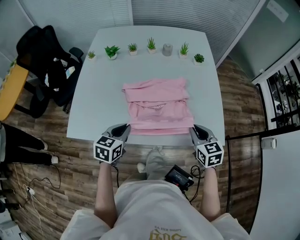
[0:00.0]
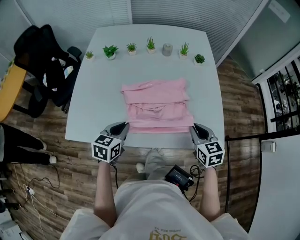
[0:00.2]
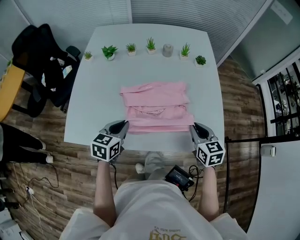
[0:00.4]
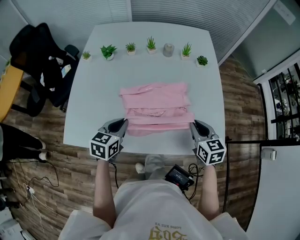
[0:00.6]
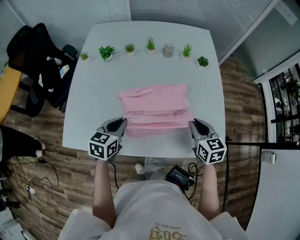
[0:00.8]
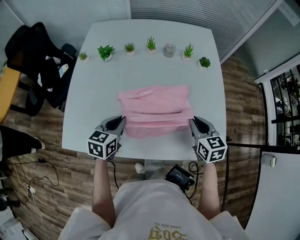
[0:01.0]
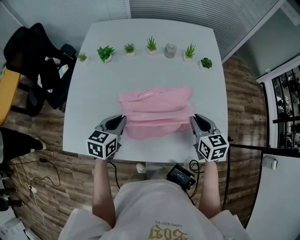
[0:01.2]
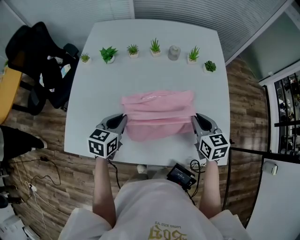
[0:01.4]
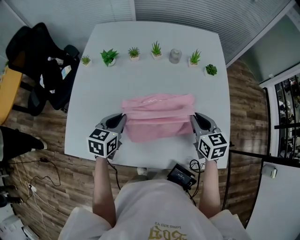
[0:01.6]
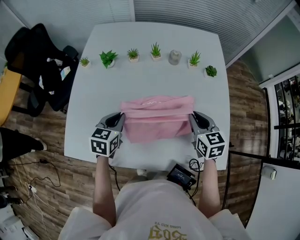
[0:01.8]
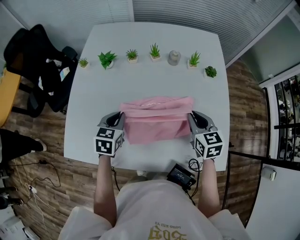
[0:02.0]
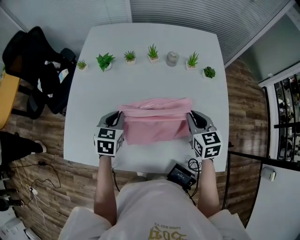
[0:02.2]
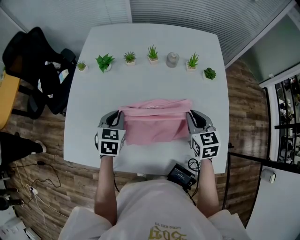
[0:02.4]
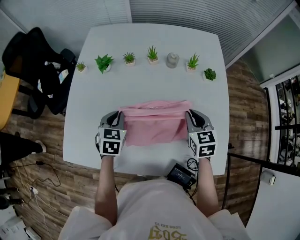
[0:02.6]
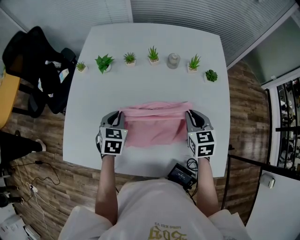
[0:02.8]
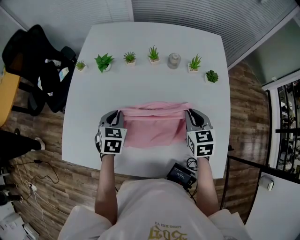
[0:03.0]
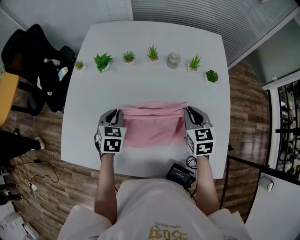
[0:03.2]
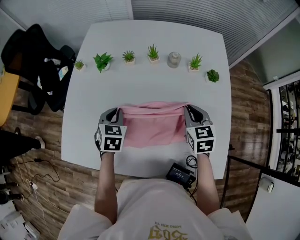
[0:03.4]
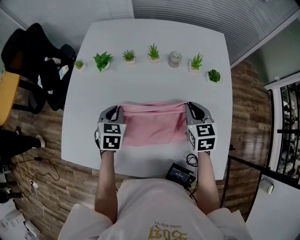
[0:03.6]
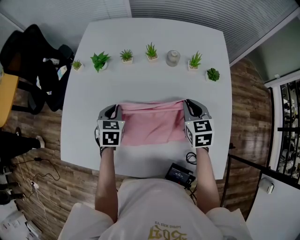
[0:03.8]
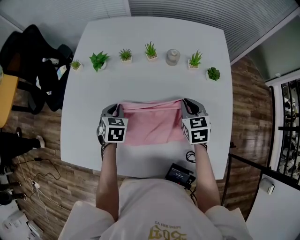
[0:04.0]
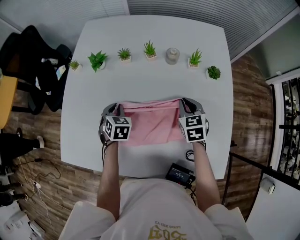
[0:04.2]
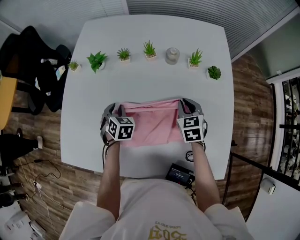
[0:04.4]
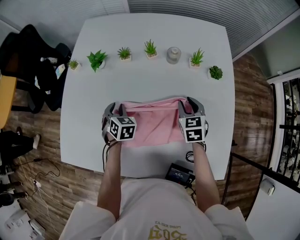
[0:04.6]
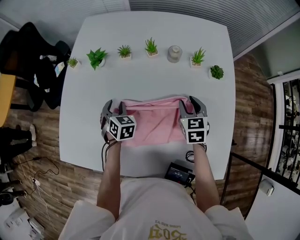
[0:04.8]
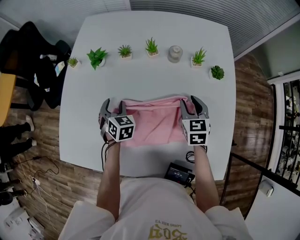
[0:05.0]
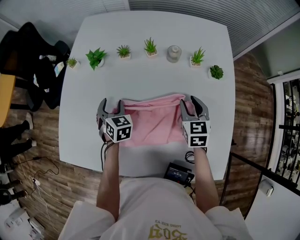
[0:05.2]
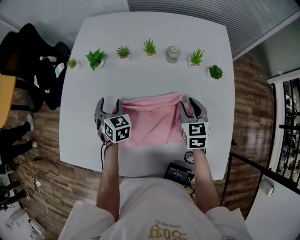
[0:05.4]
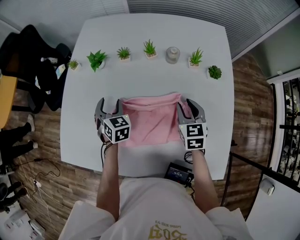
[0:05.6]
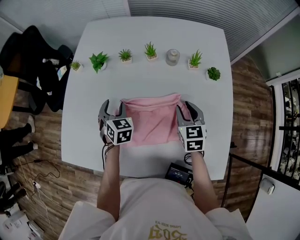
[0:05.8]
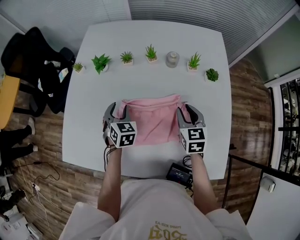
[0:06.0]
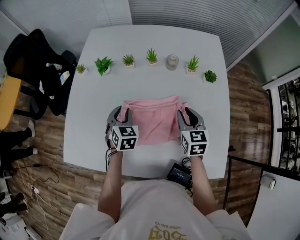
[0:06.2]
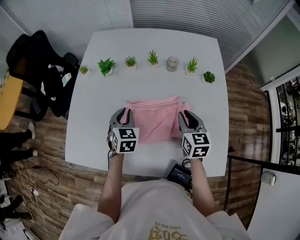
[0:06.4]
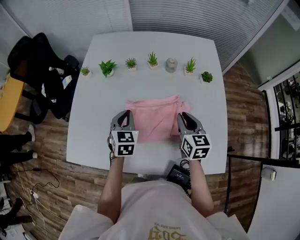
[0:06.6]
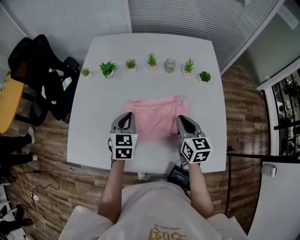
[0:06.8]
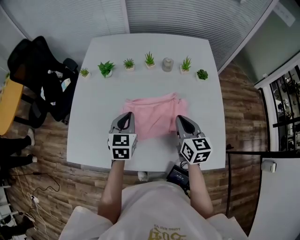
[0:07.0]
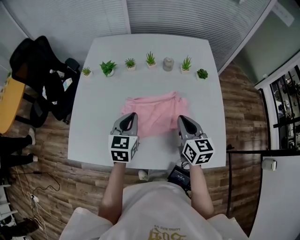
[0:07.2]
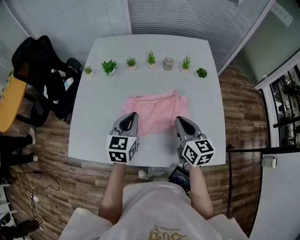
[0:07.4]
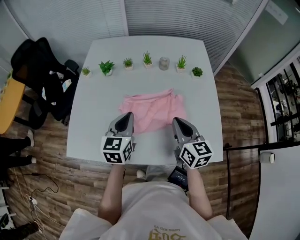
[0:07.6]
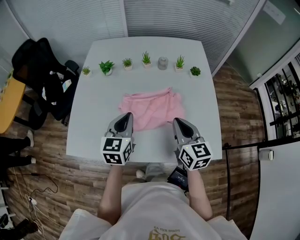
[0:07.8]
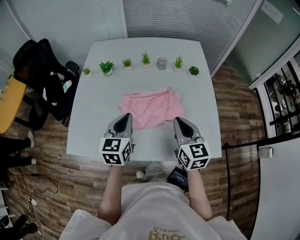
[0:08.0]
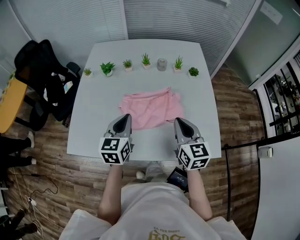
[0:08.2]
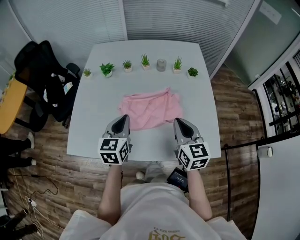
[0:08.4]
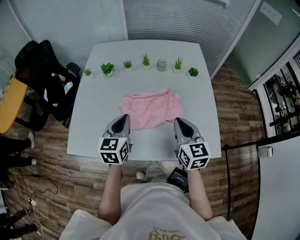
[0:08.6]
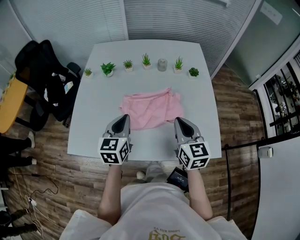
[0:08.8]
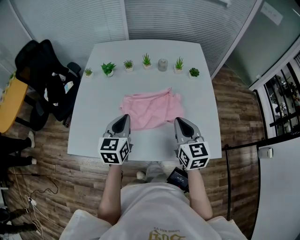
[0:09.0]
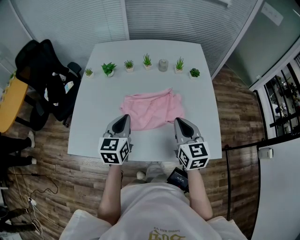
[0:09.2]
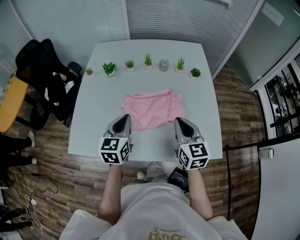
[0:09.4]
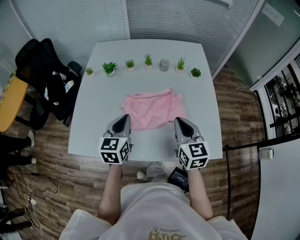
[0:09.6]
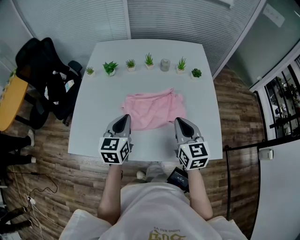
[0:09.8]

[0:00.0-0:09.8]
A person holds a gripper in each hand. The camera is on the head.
0:00.0 to 0:01.4: The grippers both shift forward by roughly 15 cm.
0:01.4 to 0:02.8: Both grippers move forward, roughly 10 cm. The left gripper rotates roughly 20 degrees.
0:02.8 to 0:04.2: The right gripper heads forward and downward, covering approximately 10 cm. The left gripper shifts some 10 cm downward and forward.
0:04.2 to 0:05.6: The left gripper opens up.
0:05.6 to 0:07.0: The left gripper is displaced backward, upward and to the right by roughly 20 cm, turns by roughly 30 degrees, and closes. Meanwhile the right gripper moves backward, upward and to the left, roughly 15 cm, changes its angle by approximately 20 degrees, and closes up.
0:07.0 to 0:08.4: The grippers both shift backward and upward by roughly 10 cm.
0:08.4 to 0:09.8: The grippers make only small movements.

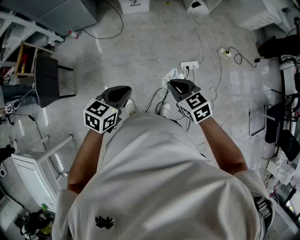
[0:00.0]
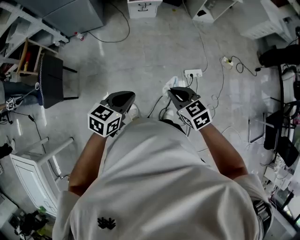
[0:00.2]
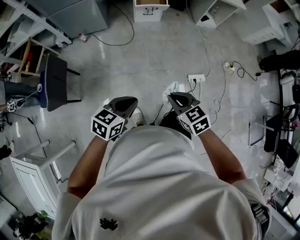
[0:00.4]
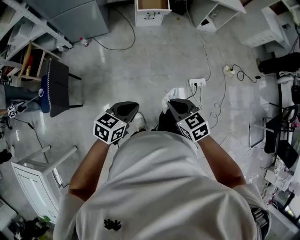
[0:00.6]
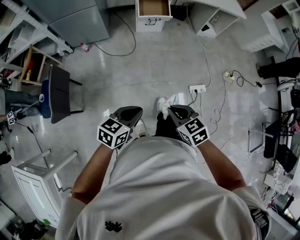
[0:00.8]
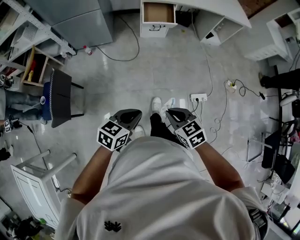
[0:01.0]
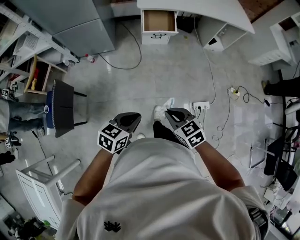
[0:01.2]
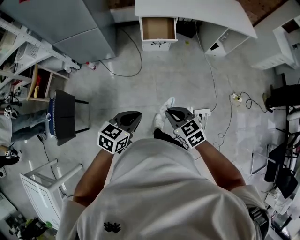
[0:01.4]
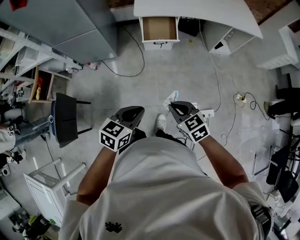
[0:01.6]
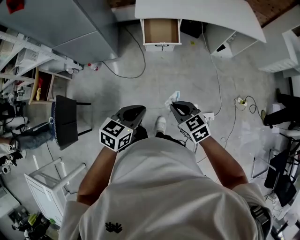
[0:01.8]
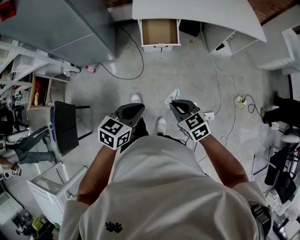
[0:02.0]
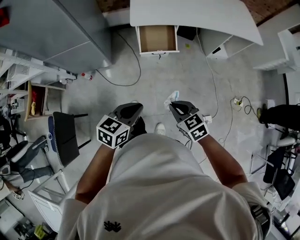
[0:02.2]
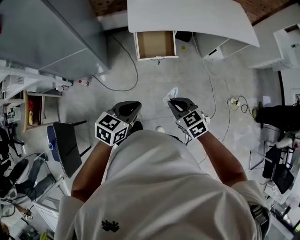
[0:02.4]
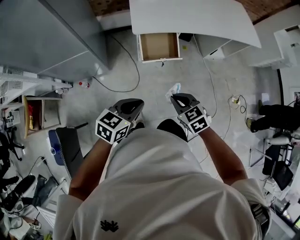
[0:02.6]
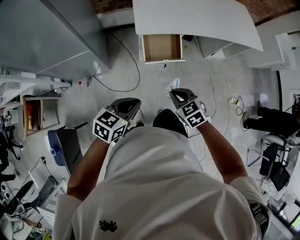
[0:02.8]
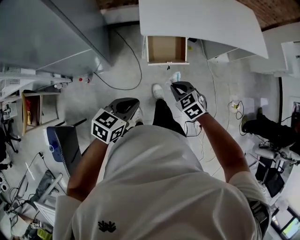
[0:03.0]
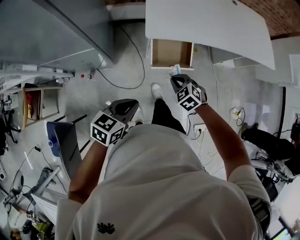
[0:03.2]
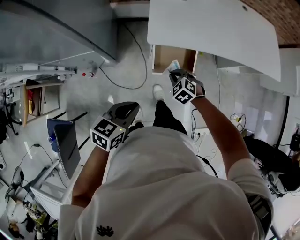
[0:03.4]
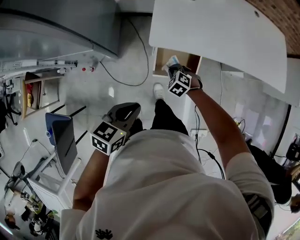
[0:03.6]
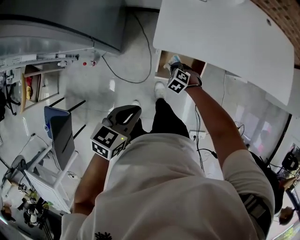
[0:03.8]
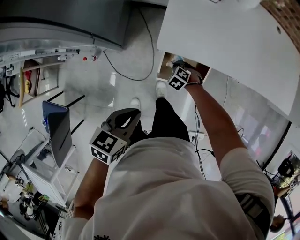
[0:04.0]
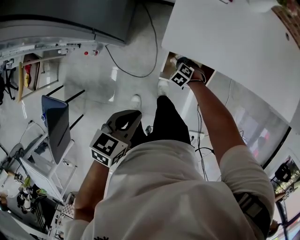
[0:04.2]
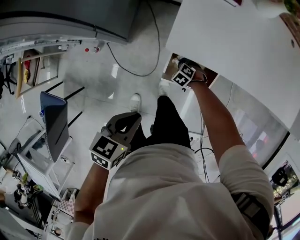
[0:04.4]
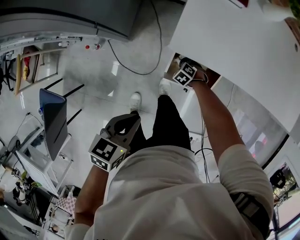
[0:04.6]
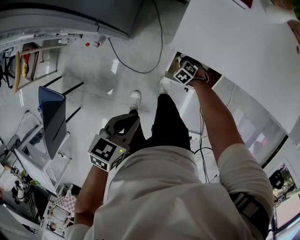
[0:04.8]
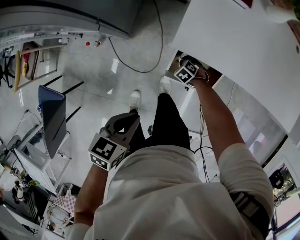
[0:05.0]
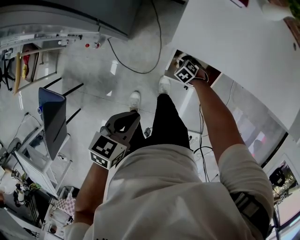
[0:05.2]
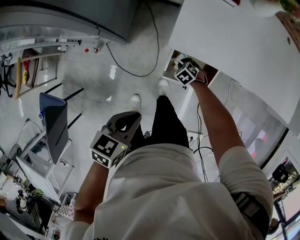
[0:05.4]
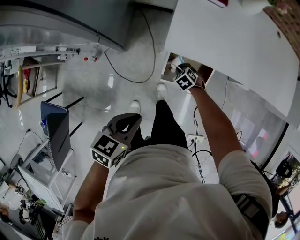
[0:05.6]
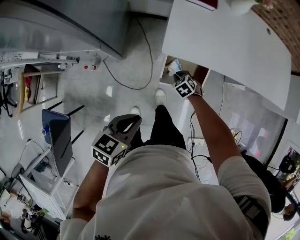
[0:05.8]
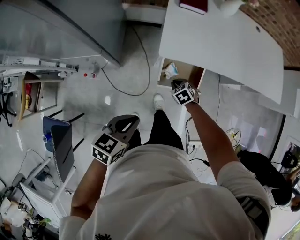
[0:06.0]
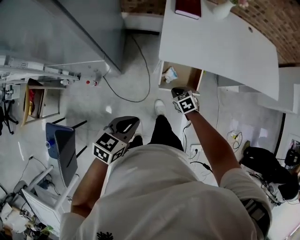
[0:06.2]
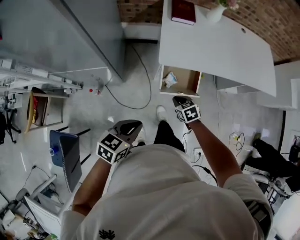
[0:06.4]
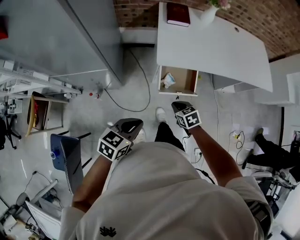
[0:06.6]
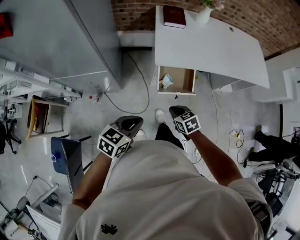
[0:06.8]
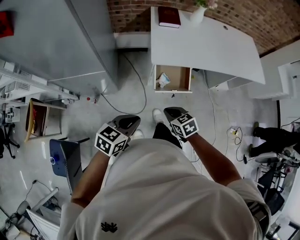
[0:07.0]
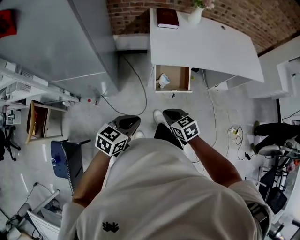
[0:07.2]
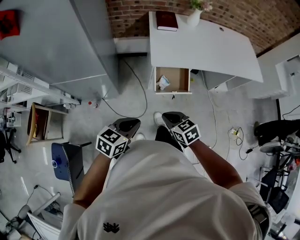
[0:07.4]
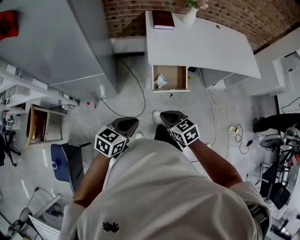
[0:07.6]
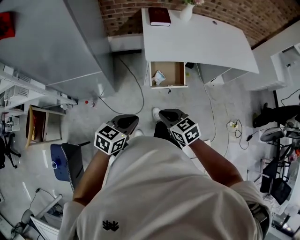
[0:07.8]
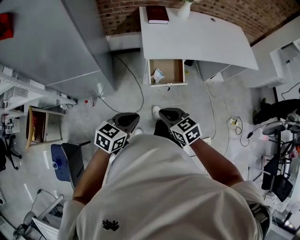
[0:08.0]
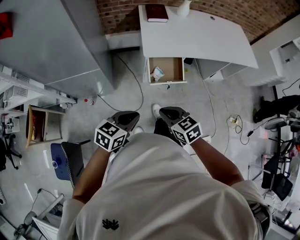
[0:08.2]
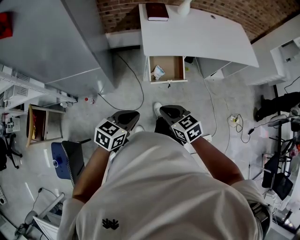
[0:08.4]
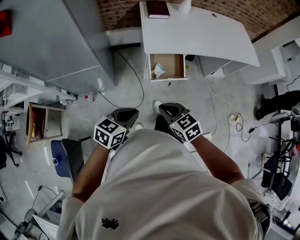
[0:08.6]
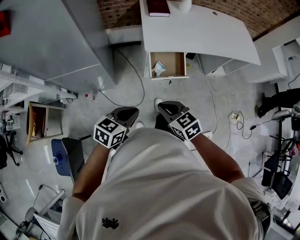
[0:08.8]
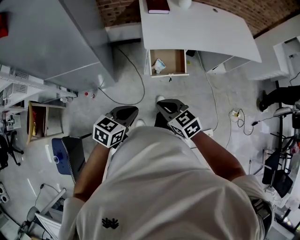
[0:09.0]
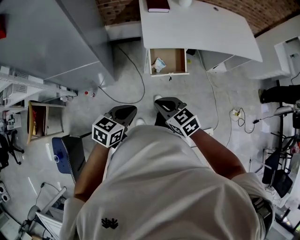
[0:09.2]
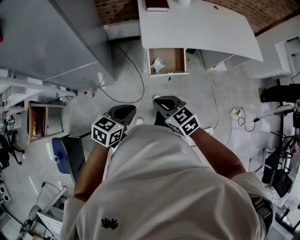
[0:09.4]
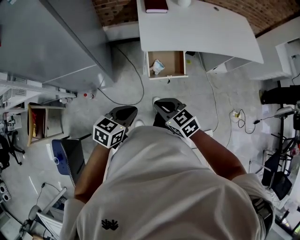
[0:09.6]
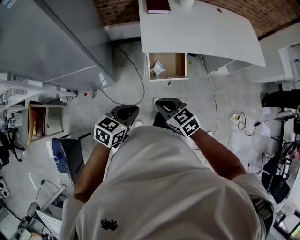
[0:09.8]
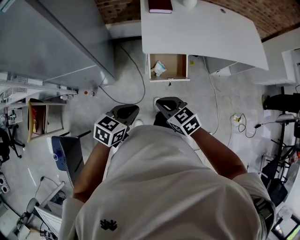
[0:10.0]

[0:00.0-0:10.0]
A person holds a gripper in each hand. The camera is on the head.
0:00.0 to 0:01.4: Both grippers move forward and to the left, about 30 cm.
0:01.4 to 0:02.8: The two grippers travel together, forward, roughly 40 cm.
0:02.8 to 0:04.2: The left gripper ends up roughly 30 cm from where it was, and changes its angle by roughly 30 degrees; the right gripper changes place by some 60 cm, and changes its angle by some 50 degrees.
0:04.2 to 0:05.8: The right gripper goes some 10 cm upward, and turns by approximately 20 degrees, while the left gripper shifts by roughly 10 cm.
0:05.8 to 0:07.2: The right gripper heads backward and upward, covering some 40 cm, and changes its angle by some 30 degrees, while the left gripper shifts about 15 cm backward and upward.
0:07.2 to 0:08.6: The right gripper moves backward and upward, about 10 cm.
0:08.6 to 0:10.0: The left gripper shifts approximately 10 cm forward and to the right, while the right gripper shifts approximately 10 cm forward.

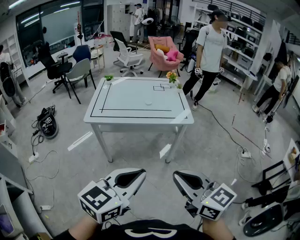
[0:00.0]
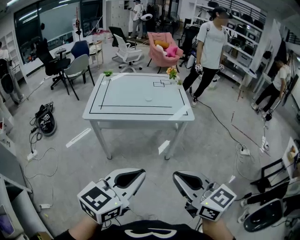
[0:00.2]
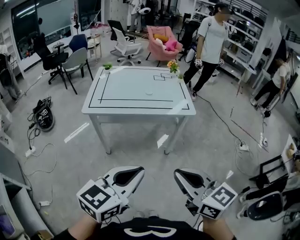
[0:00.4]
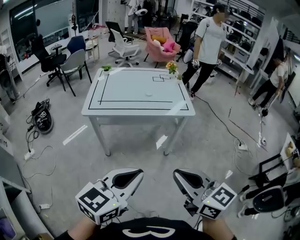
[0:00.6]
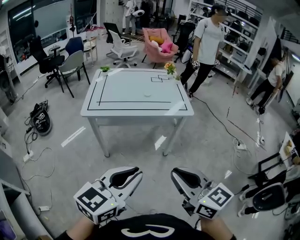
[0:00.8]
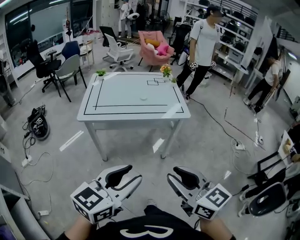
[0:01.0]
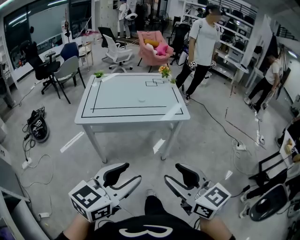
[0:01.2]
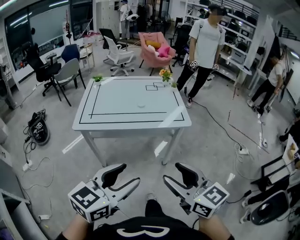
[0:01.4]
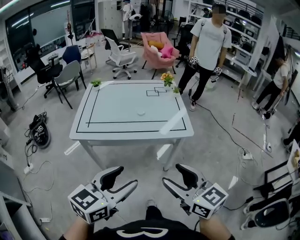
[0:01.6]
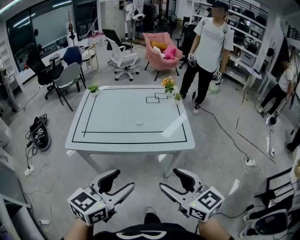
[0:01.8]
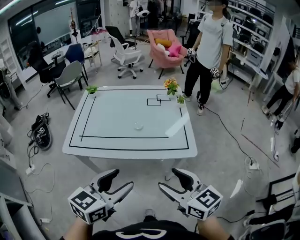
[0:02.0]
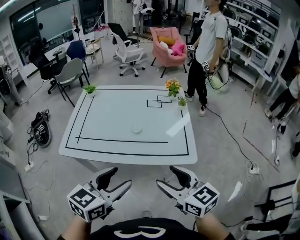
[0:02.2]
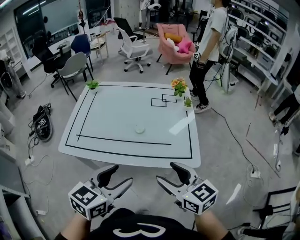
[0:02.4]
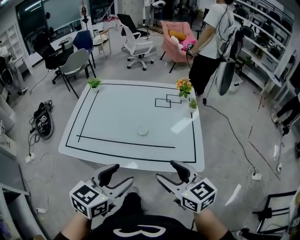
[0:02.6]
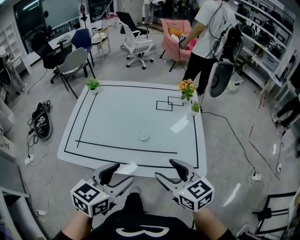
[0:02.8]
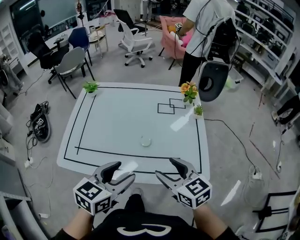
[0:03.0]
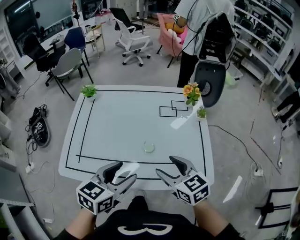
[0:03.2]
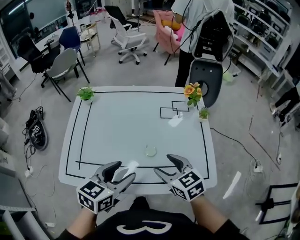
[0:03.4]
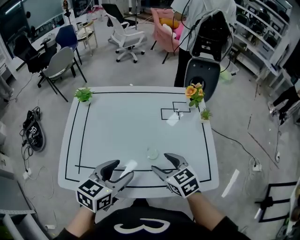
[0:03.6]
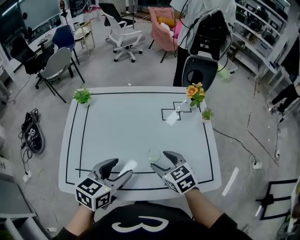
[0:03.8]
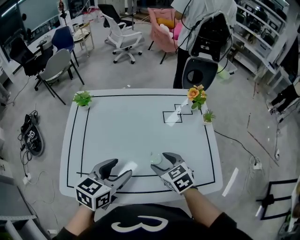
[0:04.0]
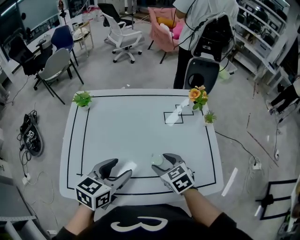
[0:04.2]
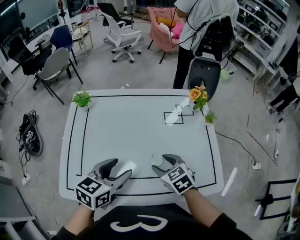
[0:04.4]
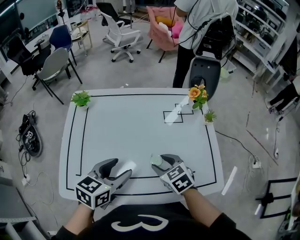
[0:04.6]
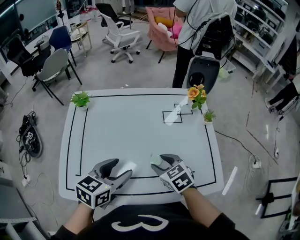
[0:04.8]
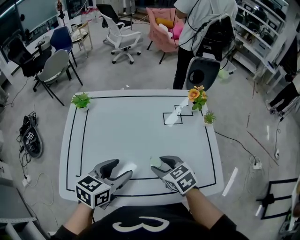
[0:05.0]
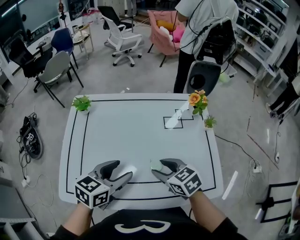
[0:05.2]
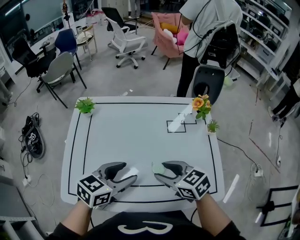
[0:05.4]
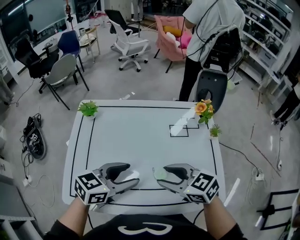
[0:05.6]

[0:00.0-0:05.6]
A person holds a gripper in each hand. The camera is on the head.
0:00.0 to 0:01.4: Both grippers move forward, approximately 10 cm. The right gripper opens its fingers, while the left gripper opens.
0:01.4 to 0:02.8: Both grippers move forward, about 40 cm.
0:02.8 to 0:04.2: The left gripper shifts about 20 cm forward and to the left; the right gripper is displaced forward, downward and to the left by approximately 25 cm, and changes its angle by about 30 degrees.
0:04.2 to 0:05.6: The right gripper heads upward, covering approximately 10 cm, and swivels approximately 30 degrees.
